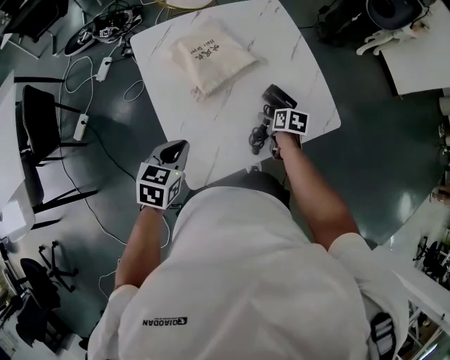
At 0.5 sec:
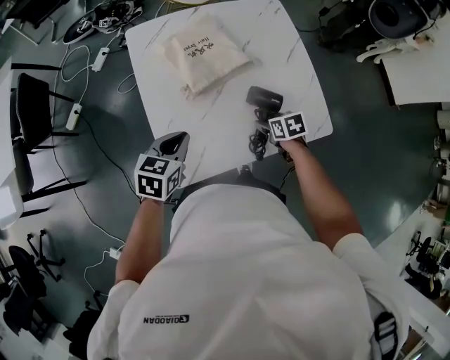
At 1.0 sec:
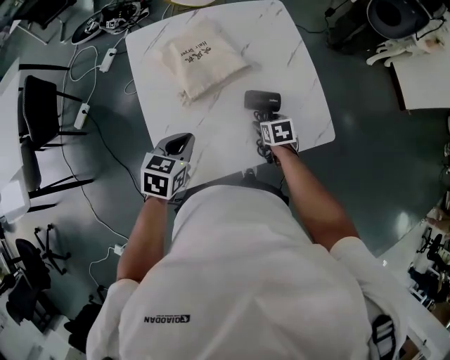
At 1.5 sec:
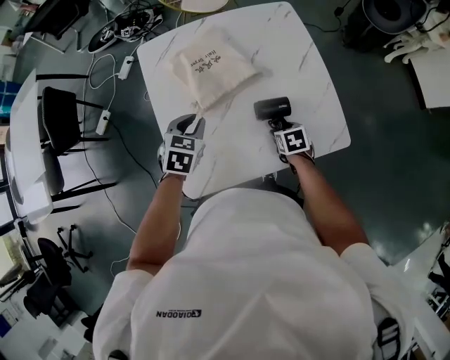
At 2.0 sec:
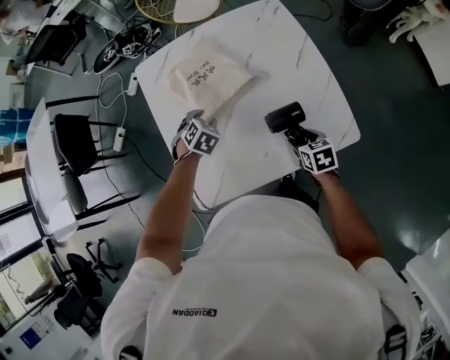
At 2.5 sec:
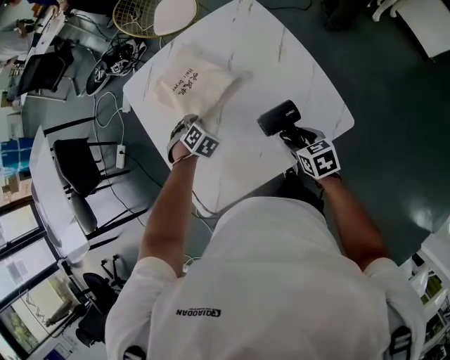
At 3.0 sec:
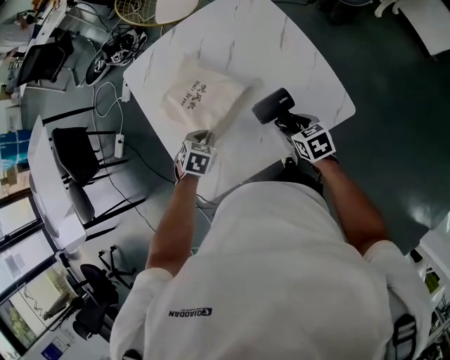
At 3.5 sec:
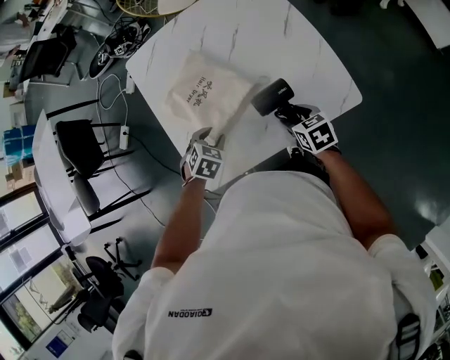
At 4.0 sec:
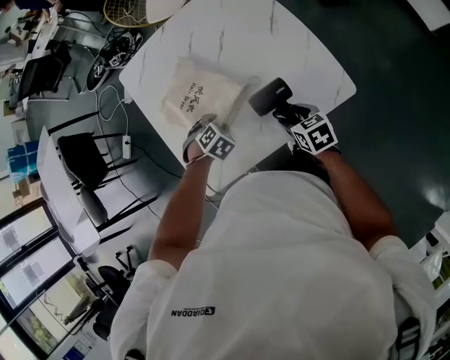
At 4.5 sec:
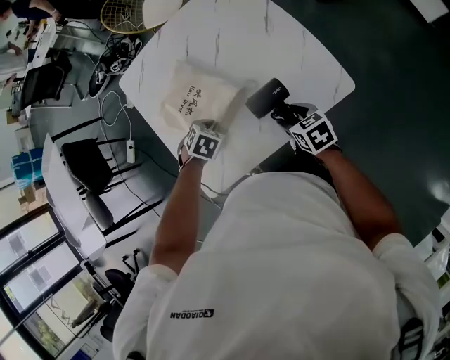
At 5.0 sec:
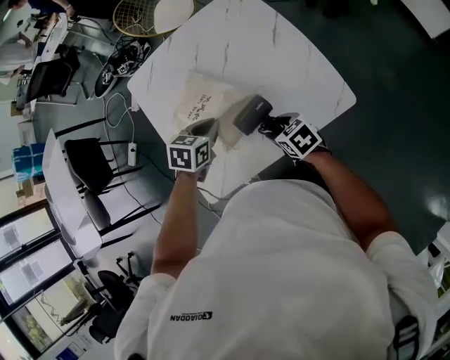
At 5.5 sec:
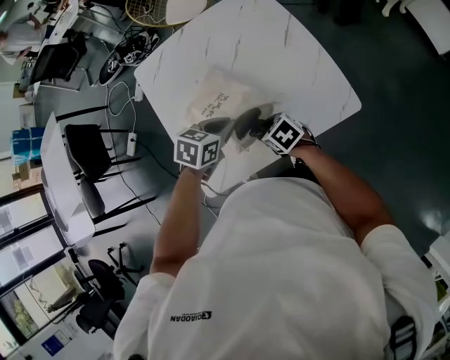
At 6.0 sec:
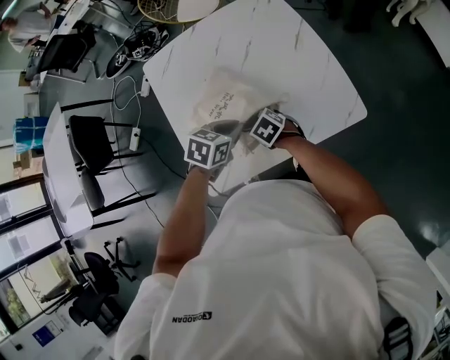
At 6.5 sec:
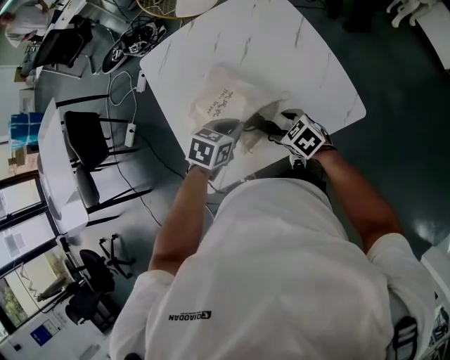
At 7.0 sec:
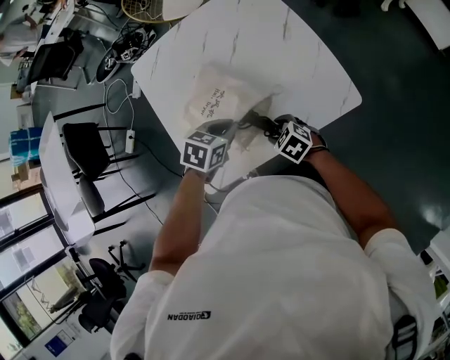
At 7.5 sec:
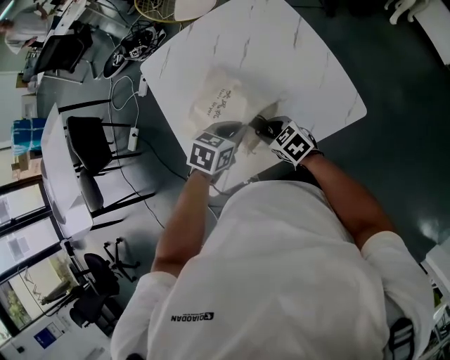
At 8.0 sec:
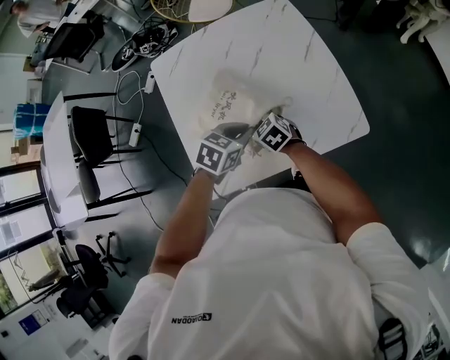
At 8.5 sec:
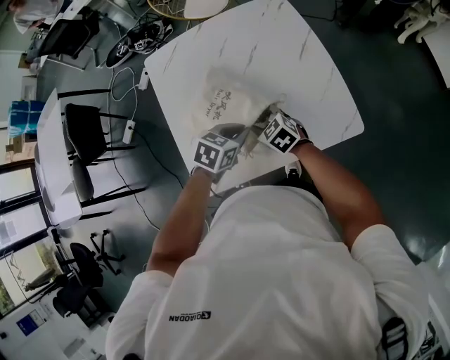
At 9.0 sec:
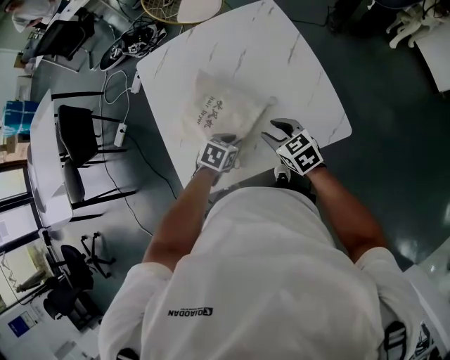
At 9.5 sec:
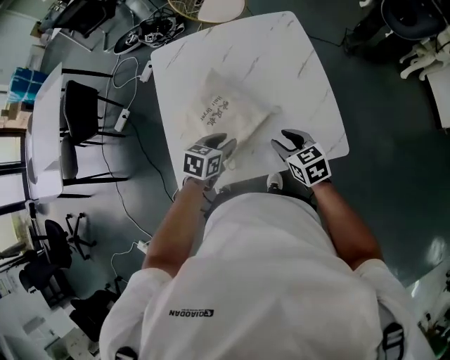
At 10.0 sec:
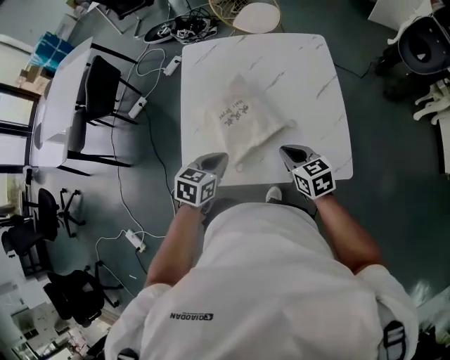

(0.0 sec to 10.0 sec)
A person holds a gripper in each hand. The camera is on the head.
0.0 sec - 2.0 sec: The right gripper shifts approximately 10 cm to the right, and changes its angle by about 30 degrees, while the left gripper is displaced forward, downward and to the right by about 25 cm, turns by roughly 40 degrees, and opens up.
2.0 sec - 4.0 sec: The left gripper changes place by roughly 15 cm, rotates about 20 degrees, and closes and opens again. The right gripper ends up approximately 5 cm from where it was.
4.0 sec - 6.0 sec: The left gripper moves upward, roughly 10 cm, swivels roughly 50 degrees, and closes its fingers, while the right gripper ends up some 15 cm from where it was, and swivels roughly 30 degrees.
8.0 sec - 10.0 sec: The right gripper heads to the right, upward and backward, covering about 20 cm, and closes up. The left gripper shifts some 10 cm backward and to the left, goes downward and returns, approximately 10 cm each way, turns by about 30 degrees, and opens and closes again.

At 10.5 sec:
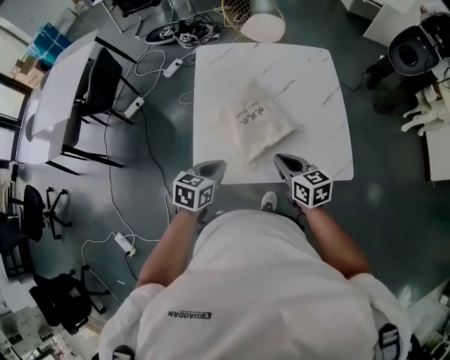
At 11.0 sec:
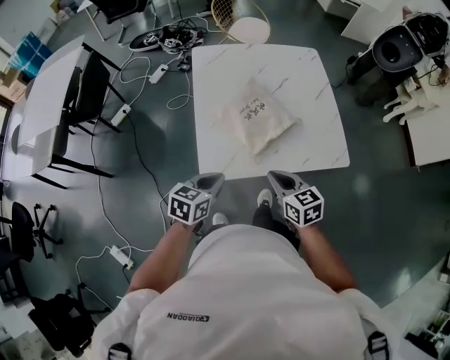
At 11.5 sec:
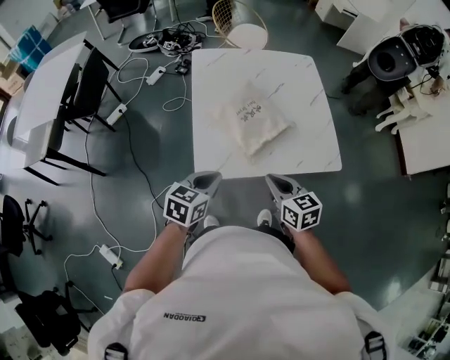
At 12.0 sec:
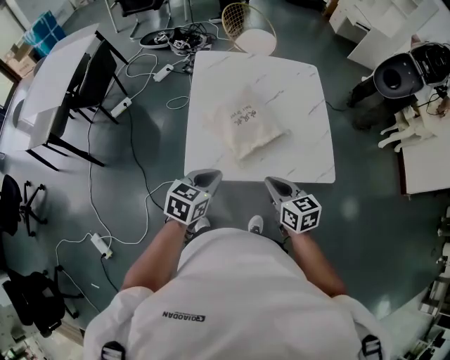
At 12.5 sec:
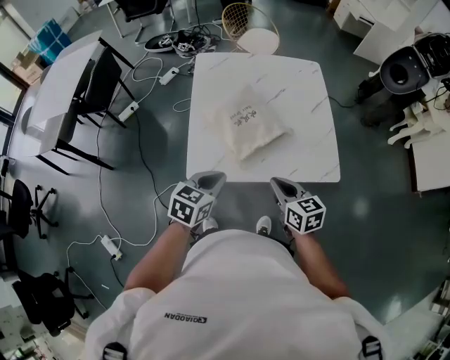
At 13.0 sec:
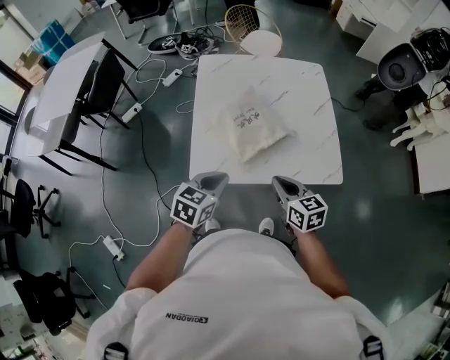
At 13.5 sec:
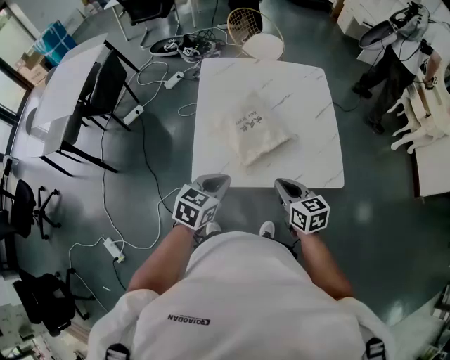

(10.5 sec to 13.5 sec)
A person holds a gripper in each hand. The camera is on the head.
10.5 sec - 12.0 sec: The left gripper heads backward and upward, covering roughly 10 cm, while the right gripper heads backward, covering roughly 10 cm.
12.0 sec - 13.5 sec: The grippers stay close to where they were, moving slightly.

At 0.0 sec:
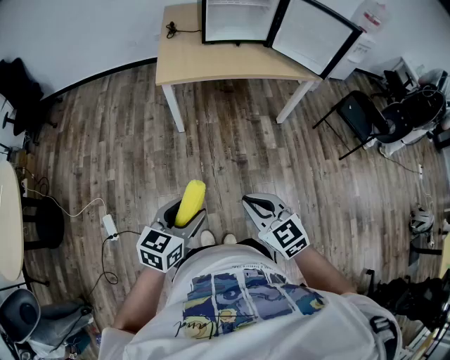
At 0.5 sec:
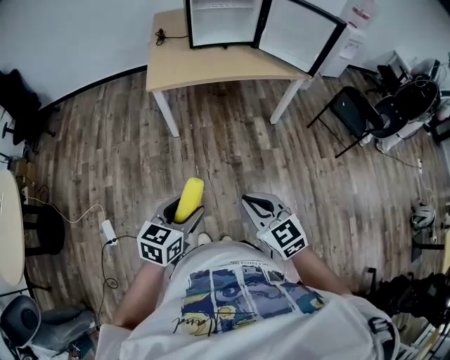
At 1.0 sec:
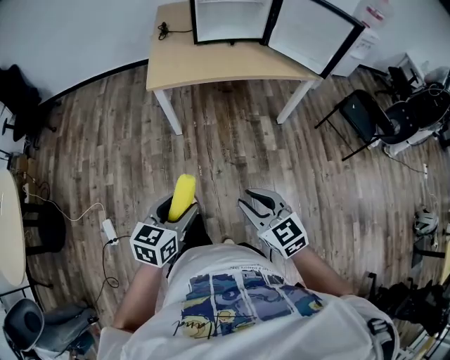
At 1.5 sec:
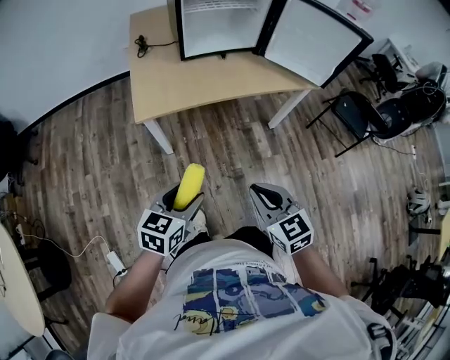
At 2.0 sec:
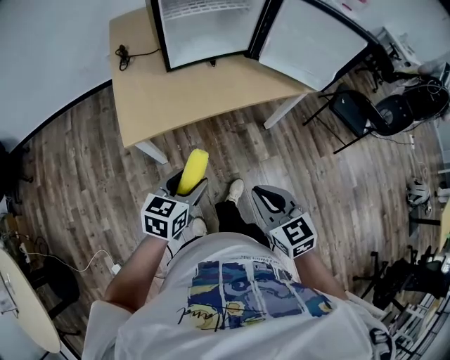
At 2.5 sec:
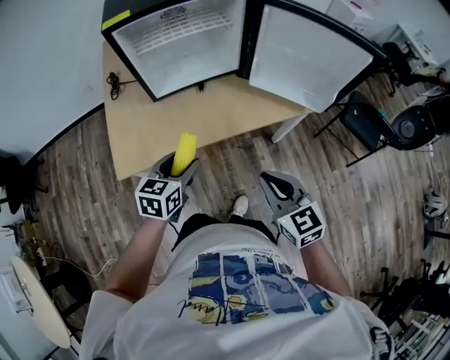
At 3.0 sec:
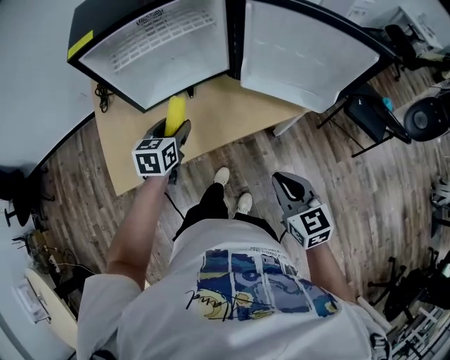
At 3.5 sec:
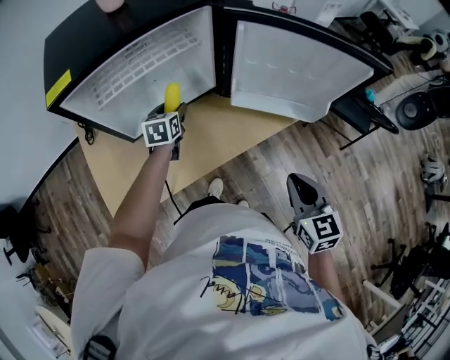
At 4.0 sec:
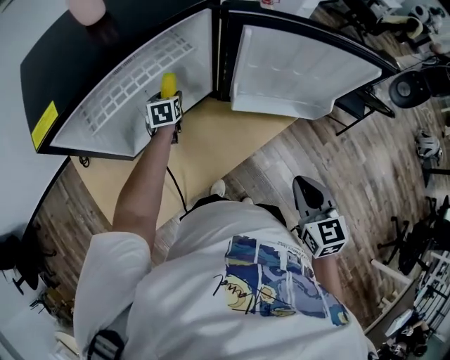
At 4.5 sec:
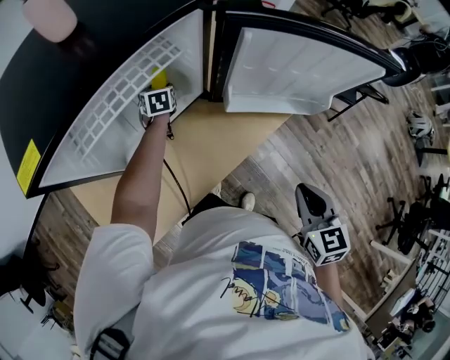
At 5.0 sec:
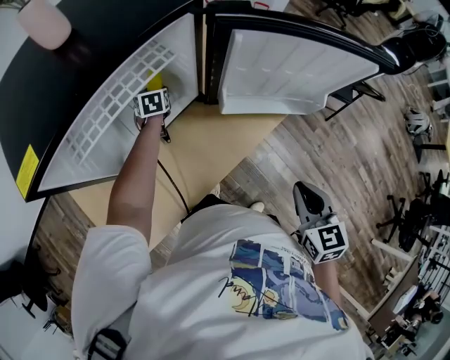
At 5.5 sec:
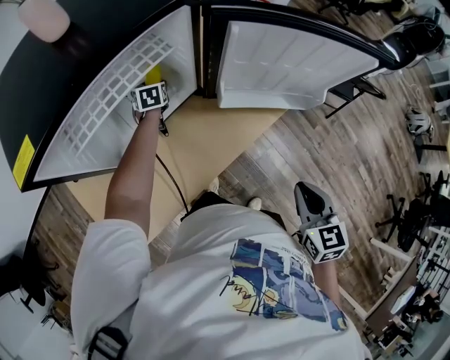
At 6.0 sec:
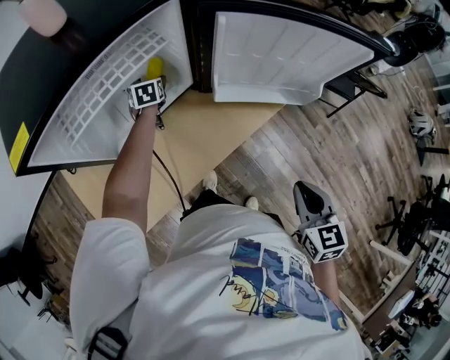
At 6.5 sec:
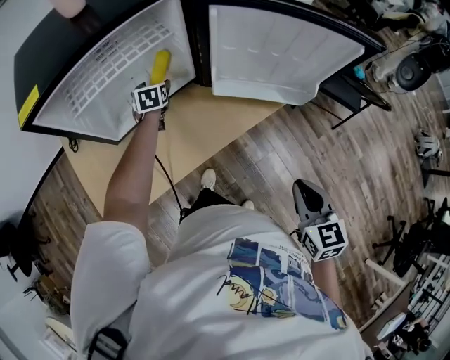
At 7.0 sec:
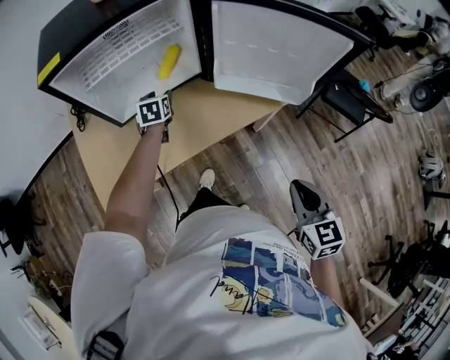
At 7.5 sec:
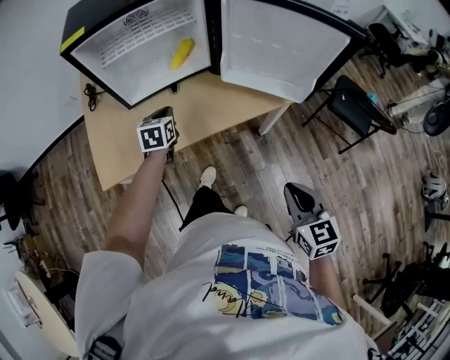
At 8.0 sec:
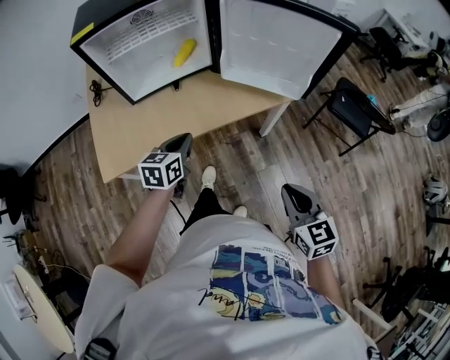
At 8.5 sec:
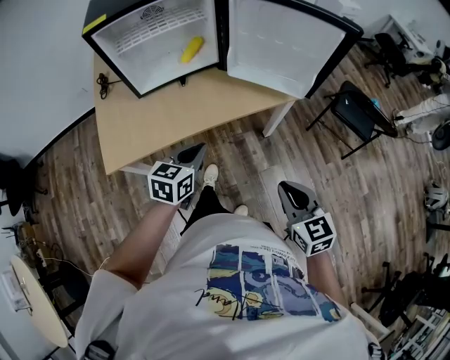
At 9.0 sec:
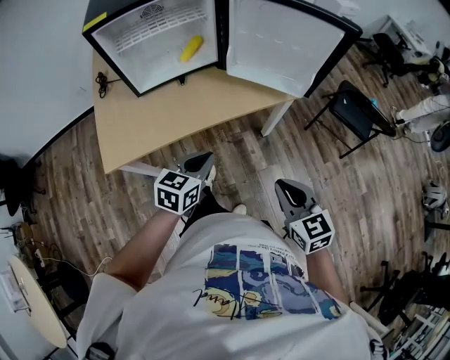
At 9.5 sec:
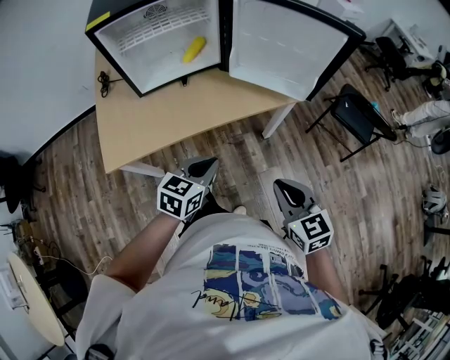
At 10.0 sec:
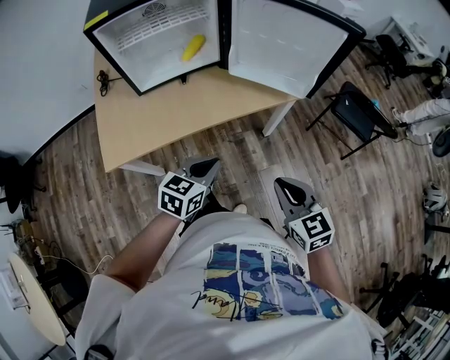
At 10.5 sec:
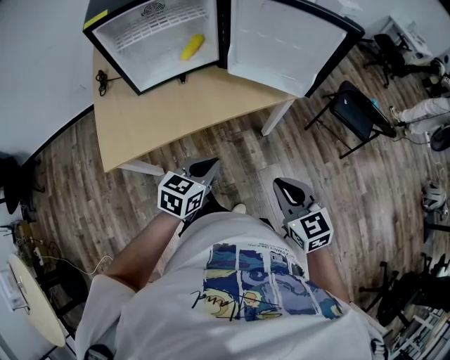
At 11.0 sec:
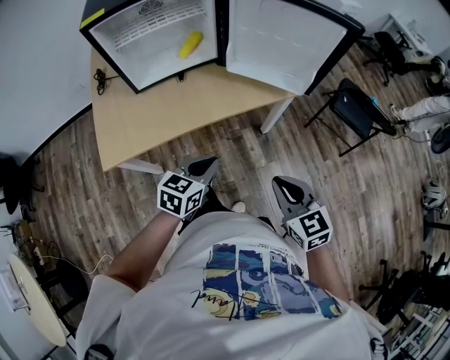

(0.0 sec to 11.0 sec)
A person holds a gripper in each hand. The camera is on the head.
0.0 sec - 2.0 sec: Both grippers travel together forward, roughly 35 cm. The right gripper changes its angle by approximately 20 degrees.
2.0 sec - 3.5 sec: The right gripper goes approximately 35 cm forward and to the right, and changes its angle by roughly 20 degrees. Meanwhile the left gripper goes some 50 cm forward.
3.5 sec - 5.5 sec: The left gripper shifts approximately 20 cm forward and downward.
5.5 sec - 7.5 sec: The right gripper travels backward and to the right by some 15 cm, and swivels approximately 30 degrees. Meanwhile the left gripper heads backward, covering roughly 30 cm, and closes.
7.5 sec - 9.0 sec: The left gripper heads backward and to the right, covering roughly 25 cm, and turns by roughly 30 degrees, while the right gripper moves approximately 5 cm.
9.0 sec - 11.0 sec: There are only small adjustments of the grippers.

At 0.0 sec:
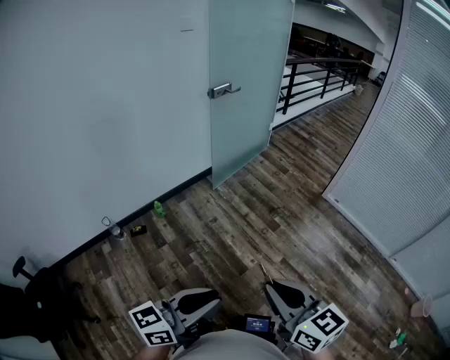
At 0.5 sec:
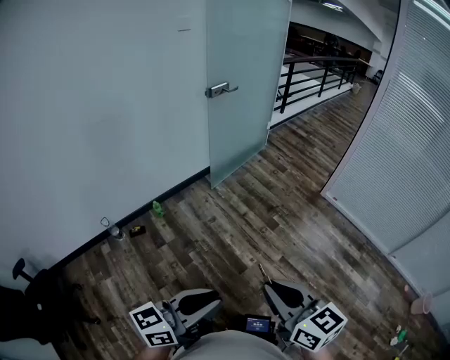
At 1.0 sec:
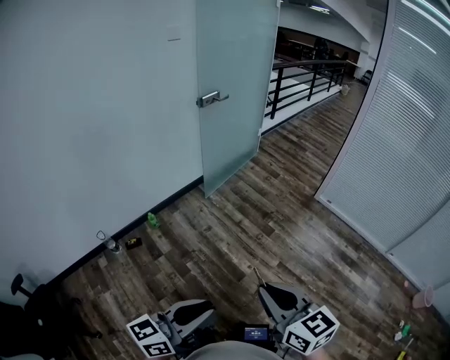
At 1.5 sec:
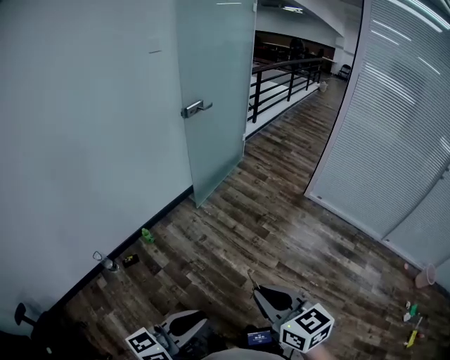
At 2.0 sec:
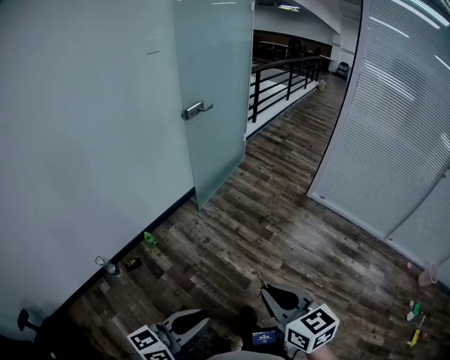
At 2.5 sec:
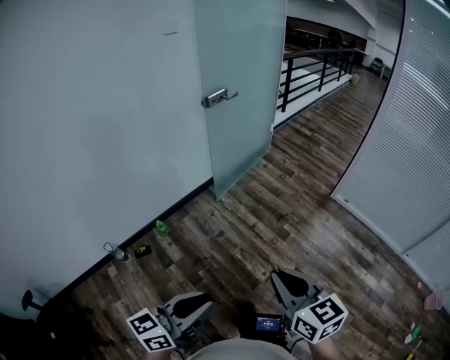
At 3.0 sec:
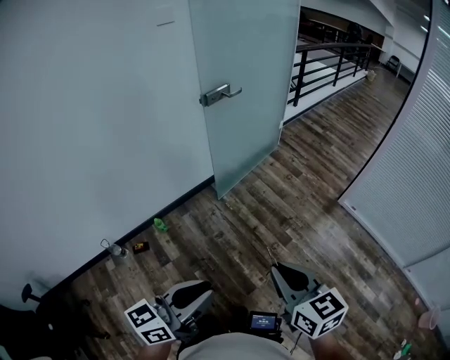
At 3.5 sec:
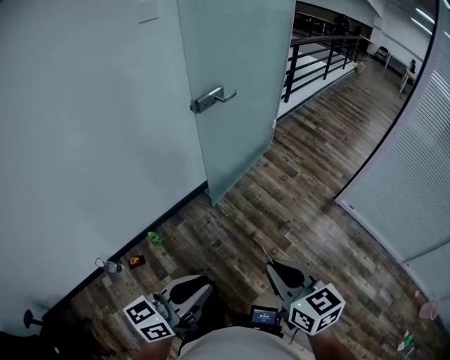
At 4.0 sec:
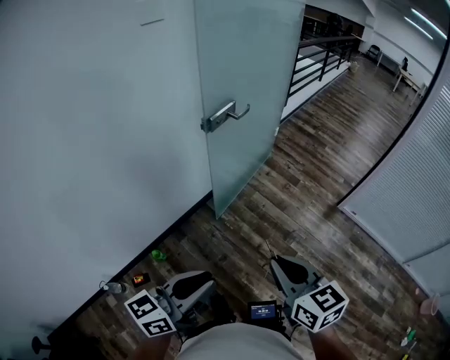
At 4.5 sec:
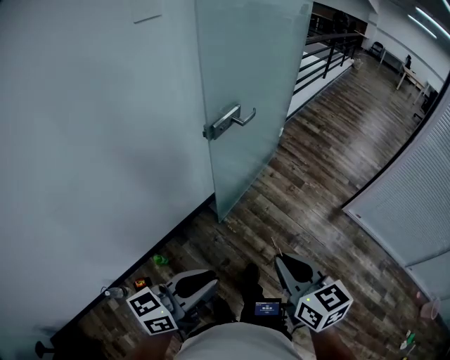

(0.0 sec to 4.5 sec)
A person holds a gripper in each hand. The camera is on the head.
0.0 sec - 2.0 sec: The right gripper ends up some 5 cm from where it was, while the left gripper moves to the left, approximately 10 cm.
2.0 sec - 4.5 sec: The pair of grippers is taken forward, some 50 cm.
